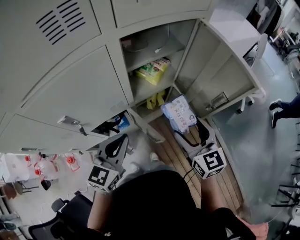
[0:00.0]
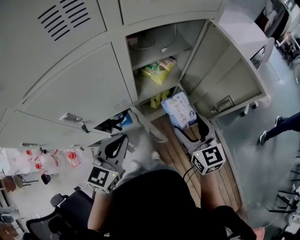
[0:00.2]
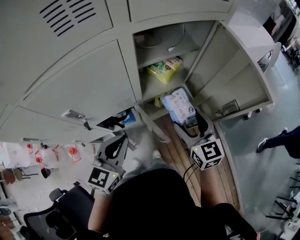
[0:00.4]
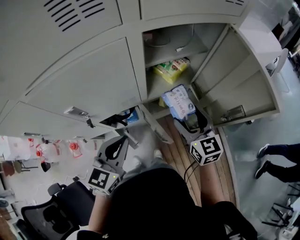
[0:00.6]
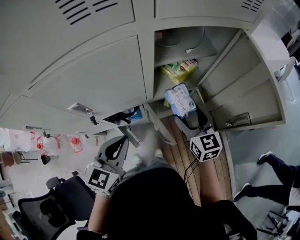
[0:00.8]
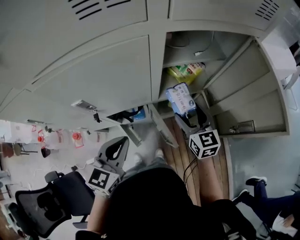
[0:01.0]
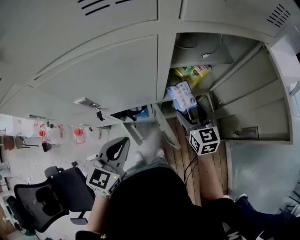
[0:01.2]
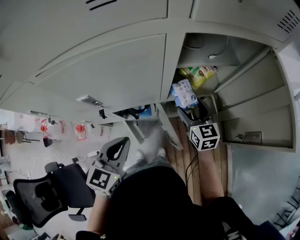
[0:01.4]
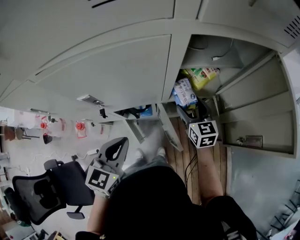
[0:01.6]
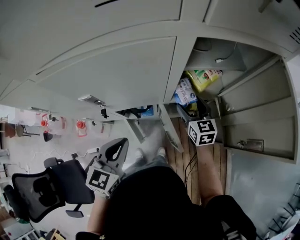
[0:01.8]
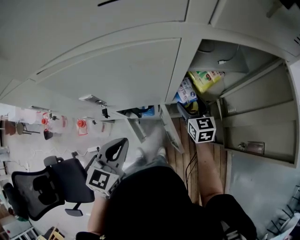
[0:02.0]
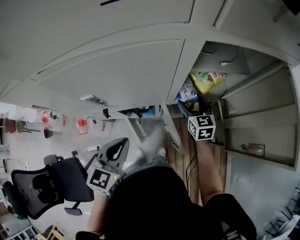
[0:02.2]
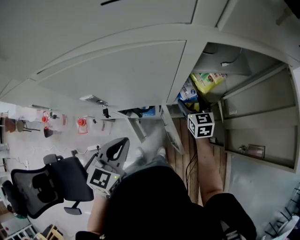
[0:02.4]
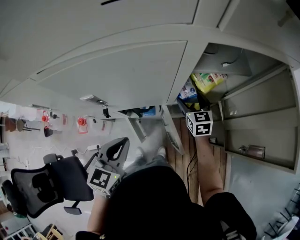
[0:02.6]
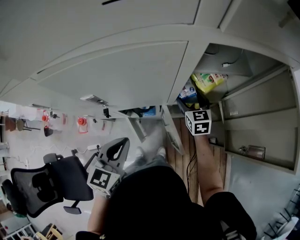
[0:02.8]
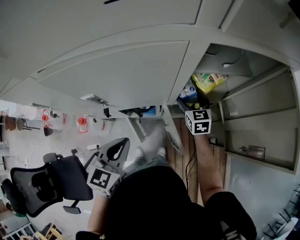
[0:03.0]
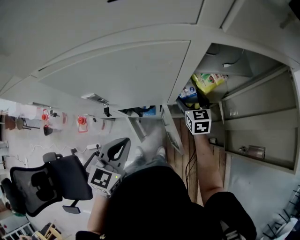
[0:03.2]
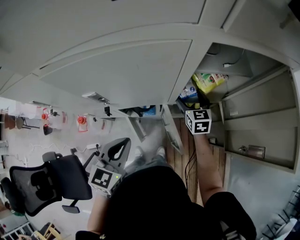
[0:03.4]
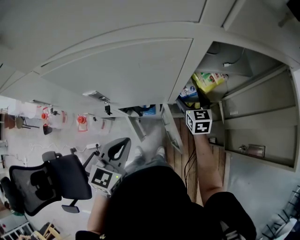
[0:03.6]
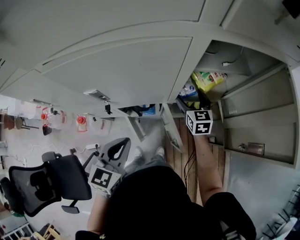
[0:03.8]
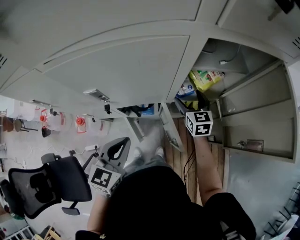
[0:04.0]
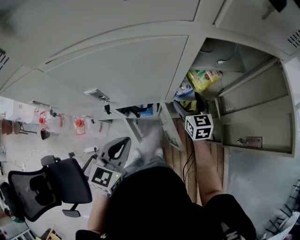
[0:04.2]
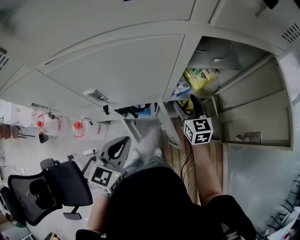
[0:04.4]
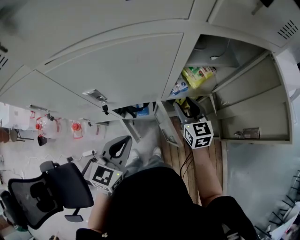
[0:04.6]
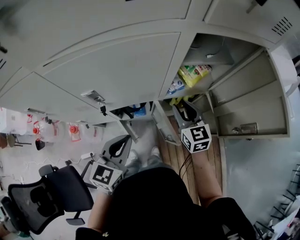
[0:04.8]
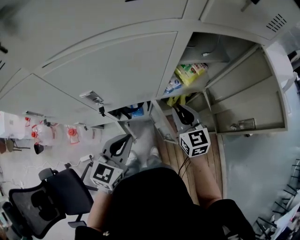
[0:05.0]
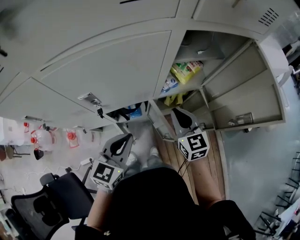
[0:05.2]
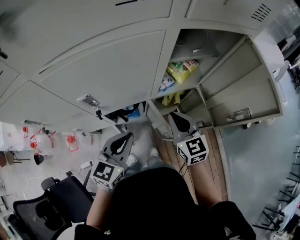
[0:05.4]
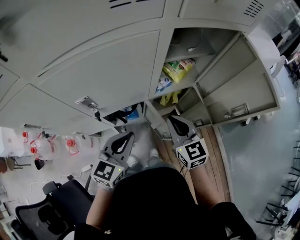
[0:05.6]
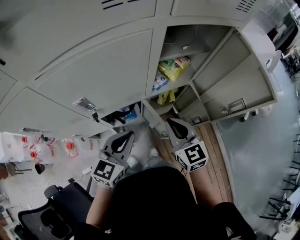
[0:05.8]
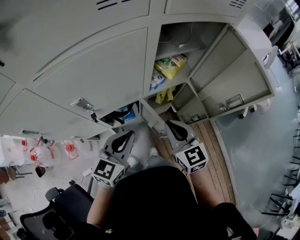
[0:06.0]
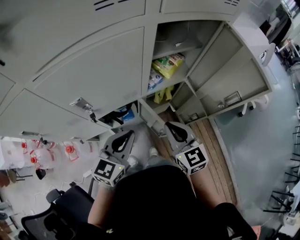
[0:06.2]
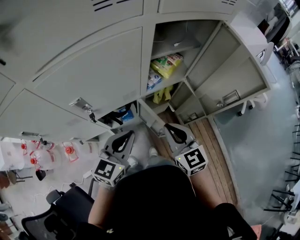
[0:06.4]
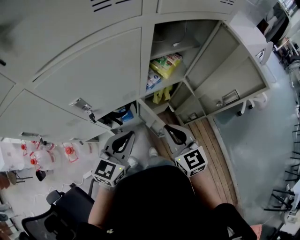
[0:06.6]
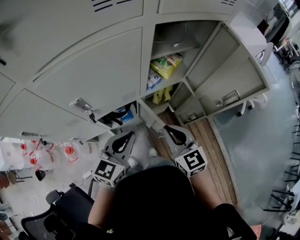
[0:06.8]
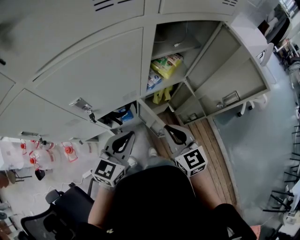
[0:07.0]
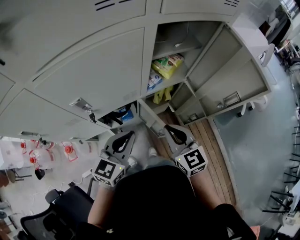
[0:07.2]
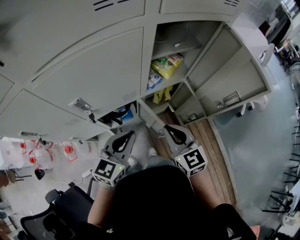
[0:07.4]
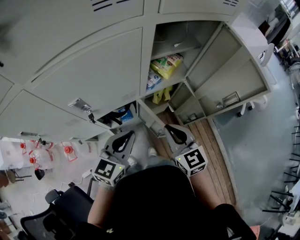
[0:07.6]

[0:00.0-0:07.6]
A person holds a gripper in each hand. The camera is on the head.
0:00.0 to 0:01.6: The left gripper is displaced to the left by approximately 10 cm, and swivels roughly 20 degrees, while the right gripper heads forward, downward and to the left, covering some 25 cm.
0:01.6 to 0:03.0: The right gripper is displaced forward by some 5 cm.
0:03.0 to 0:04.6: The right gripper is displaced backward and upward by about 10 cm, and closes.
0:04.6 to 0:06.0: The right gripper shifts approximately 15 cm backward and upward, and closes up.
0:06.0 to 0:07.6: The grippers stay close to where they were, moving slightly.

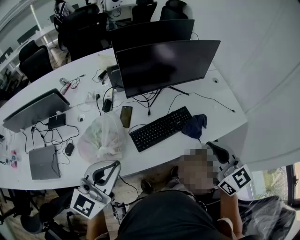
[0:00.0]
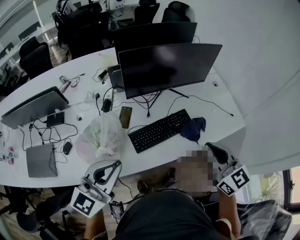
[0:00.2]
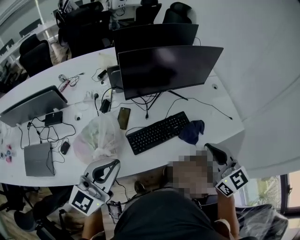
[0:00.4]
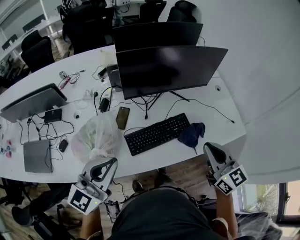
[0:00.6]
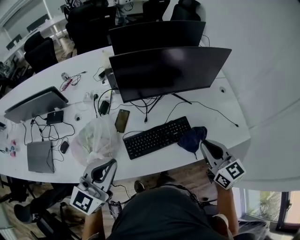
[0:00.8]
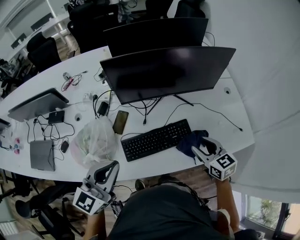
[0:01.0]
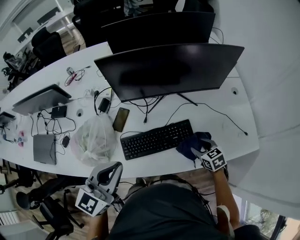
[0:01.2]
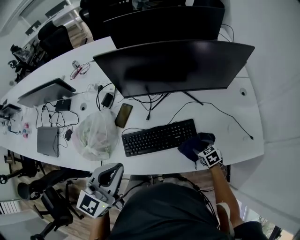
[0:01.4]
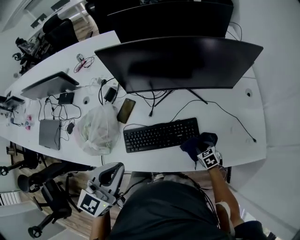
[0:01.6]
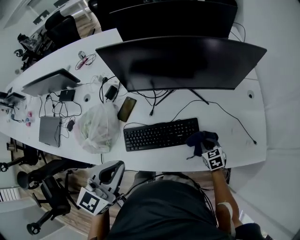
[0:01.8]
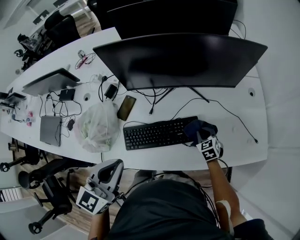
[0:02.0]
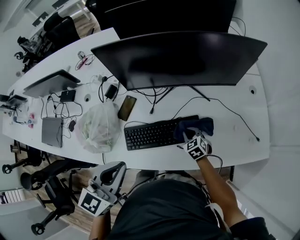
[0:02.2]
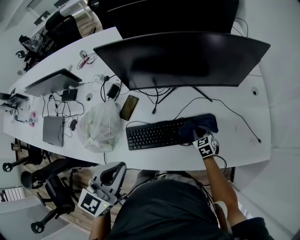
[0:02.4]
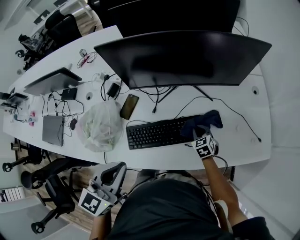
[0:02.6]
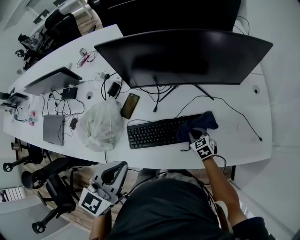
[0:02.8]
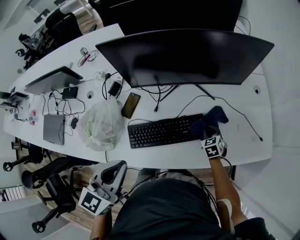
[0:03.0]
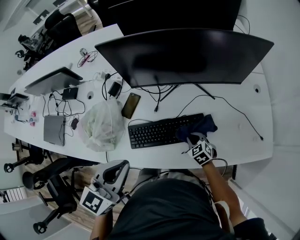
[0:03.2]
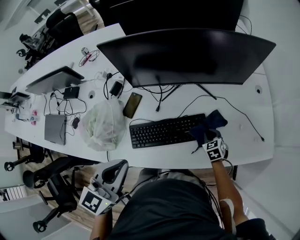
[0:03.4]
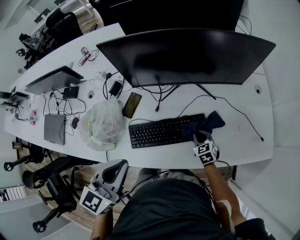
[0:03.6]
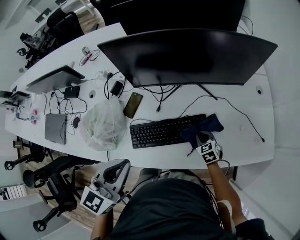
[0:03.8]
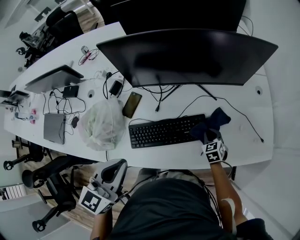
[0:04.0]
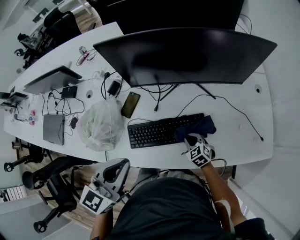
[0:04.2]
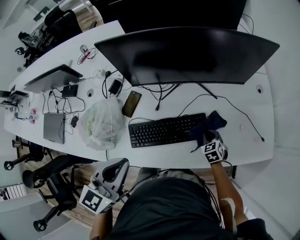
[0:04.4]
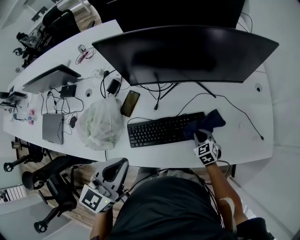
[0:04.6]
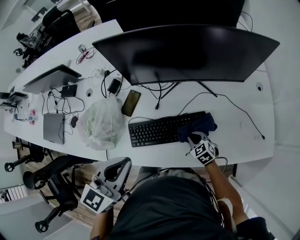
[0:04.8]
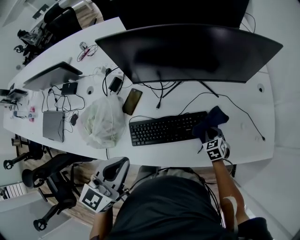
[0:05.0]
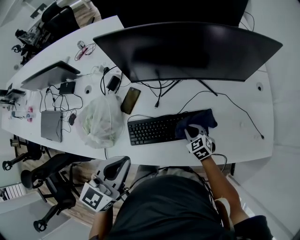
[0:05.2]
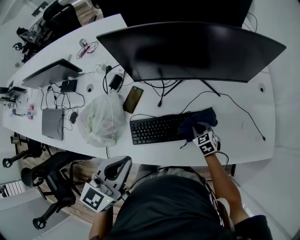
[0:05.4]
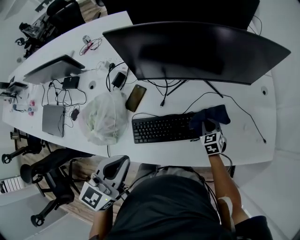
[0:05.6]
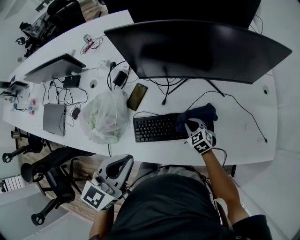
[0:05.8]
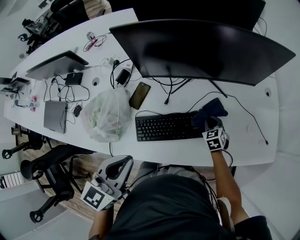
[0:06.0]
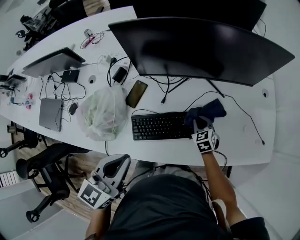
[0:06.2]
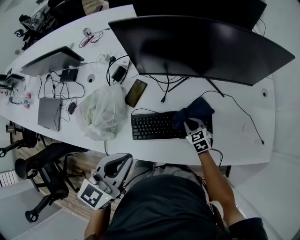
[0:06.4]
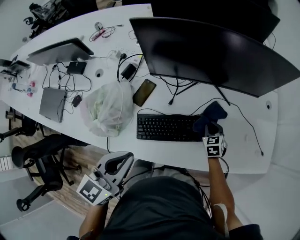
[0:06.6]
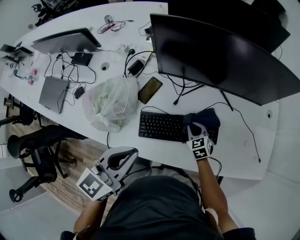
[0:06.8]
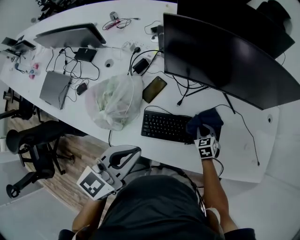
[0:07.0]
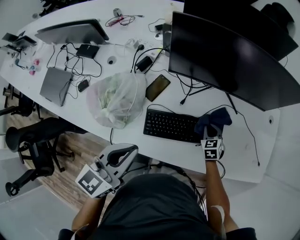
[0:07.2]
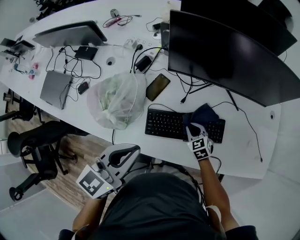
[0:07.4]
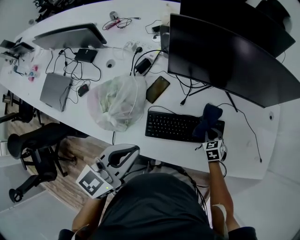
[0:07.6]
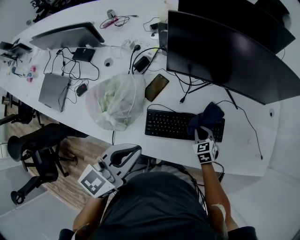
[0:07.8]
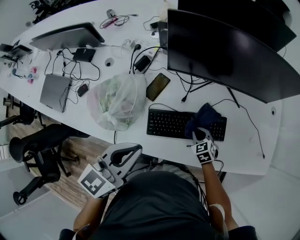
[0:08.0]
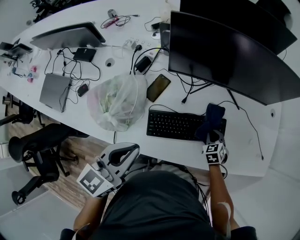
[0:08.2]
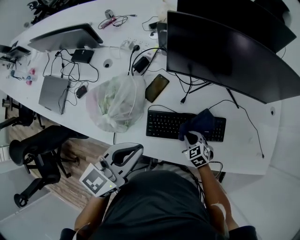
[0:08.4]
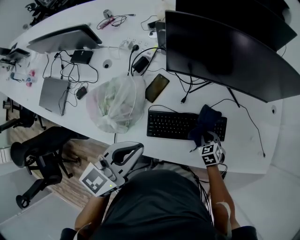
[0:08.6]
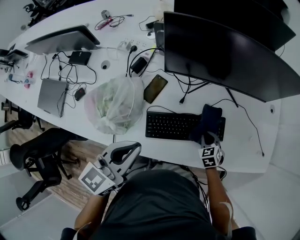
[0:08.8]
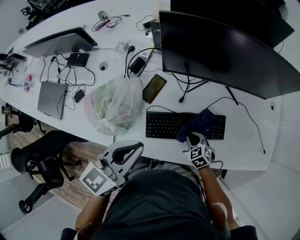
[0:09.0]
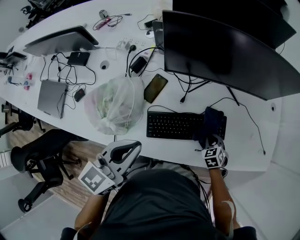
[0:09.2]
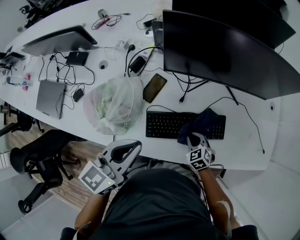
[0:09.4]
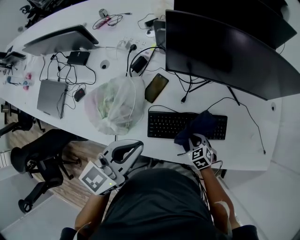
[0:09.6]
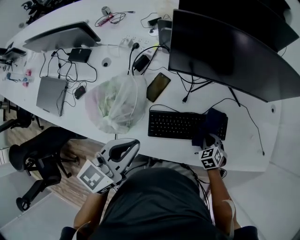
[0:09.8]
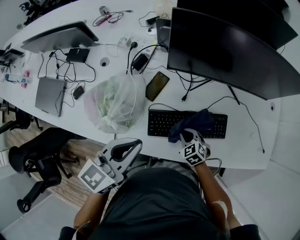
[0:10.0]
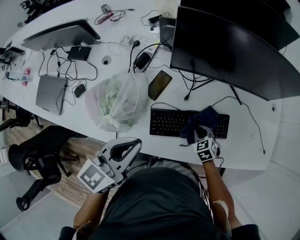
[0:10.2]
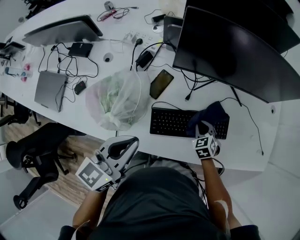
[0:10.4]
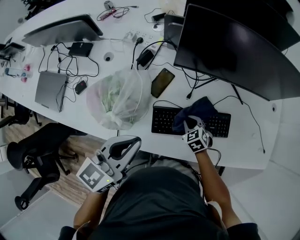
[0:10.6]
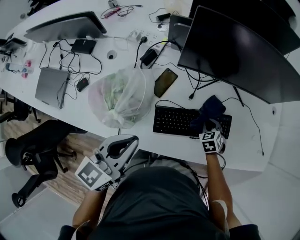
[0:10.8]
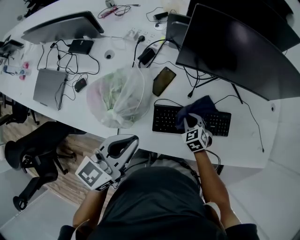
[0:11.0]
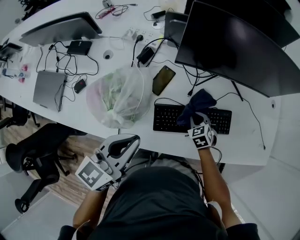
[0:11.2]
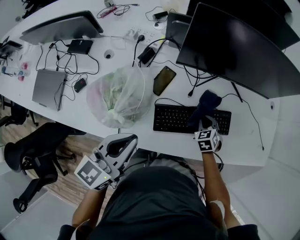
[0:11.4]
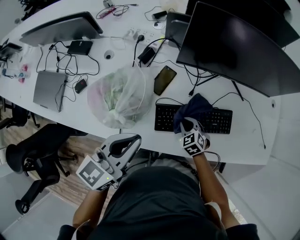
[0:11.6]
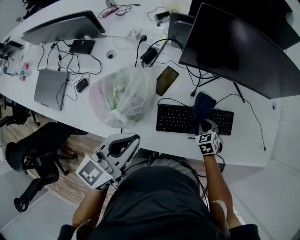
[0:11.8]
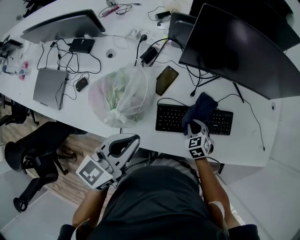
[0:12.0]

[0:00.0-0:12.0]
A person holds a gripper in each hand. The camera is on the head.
0:00.0 to 0:01.6: The left gripper is displaced to the right and forward by approximately 20 cm, and swivels some 30 degrees. The right gripper goes about 50 cm downward, forward and to the right, tilts its fingers about 50 degrees downward, and opens.
0:01.6 to 0:03.0: The right gripper heads forward, covering roughly 10 cm, reaches about 10 cm to the left, then returns, and closes up.
0:03.0 to 0:04.4: The right gripper swings left and right, some 10 cm each way, with 5 reversals.
0:04.4 to 0:06.0: The right gripper moves left and right over about 15 cm, changing direction 5 times.
0:06.0 to 0:07.6: The left gripper moves to the left, about 5 cm. The right gripper goes left and right, some 15 cm each way, reversing 5 times.
0:07.6 to 0:09.0: The right gripper swings left and right, approximately 10 cm each way, with 4 reversals.
0:09.0 to 0:10.4: The left gripper is displaced to the left by about 5 cm. The right gripper swings left and right, approximately 15 cm each way, with 4 reversals.
0:10.4 to 0:12.0: The right gripper swings left and right, some 10 cm each way, with 6 reversals.

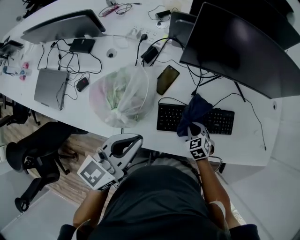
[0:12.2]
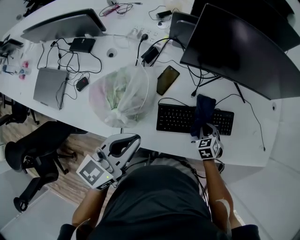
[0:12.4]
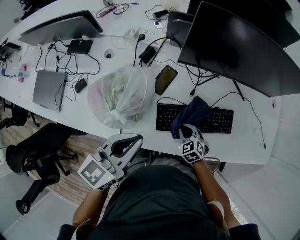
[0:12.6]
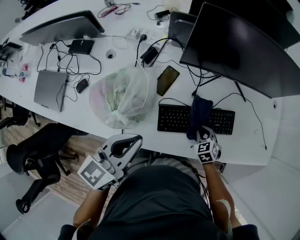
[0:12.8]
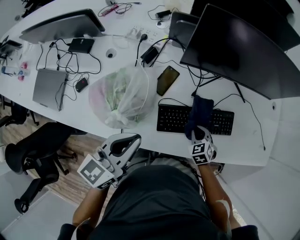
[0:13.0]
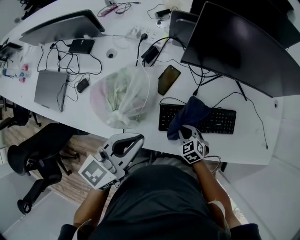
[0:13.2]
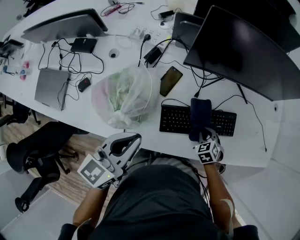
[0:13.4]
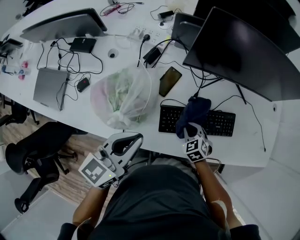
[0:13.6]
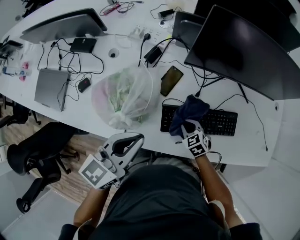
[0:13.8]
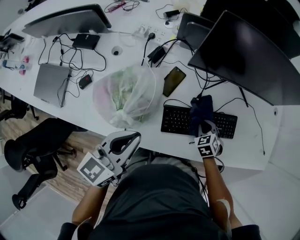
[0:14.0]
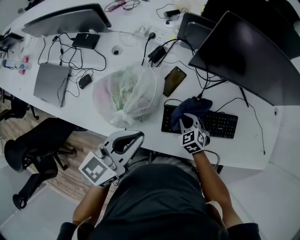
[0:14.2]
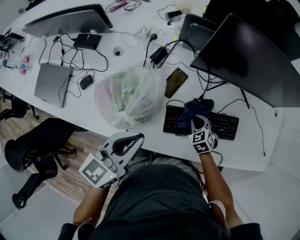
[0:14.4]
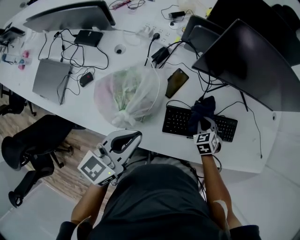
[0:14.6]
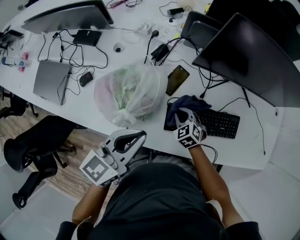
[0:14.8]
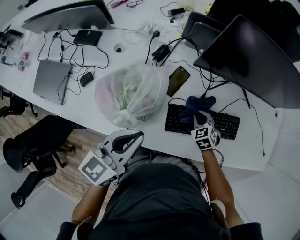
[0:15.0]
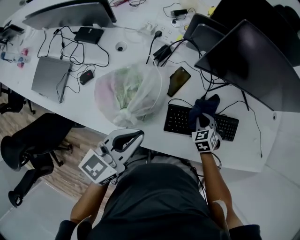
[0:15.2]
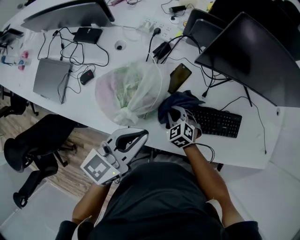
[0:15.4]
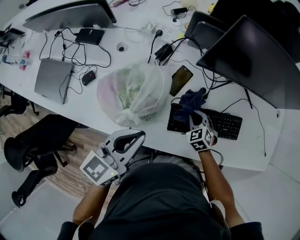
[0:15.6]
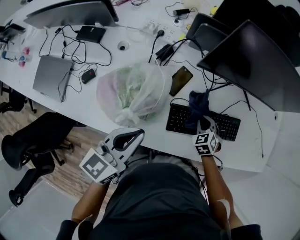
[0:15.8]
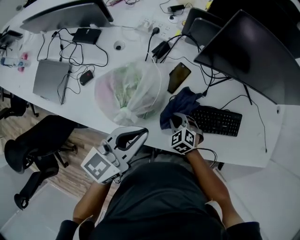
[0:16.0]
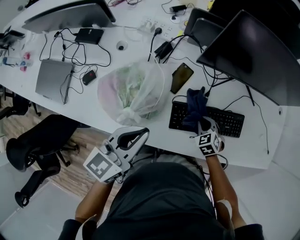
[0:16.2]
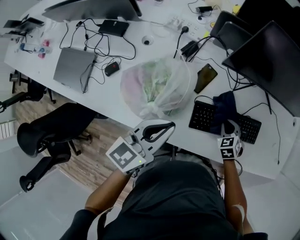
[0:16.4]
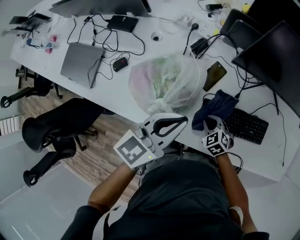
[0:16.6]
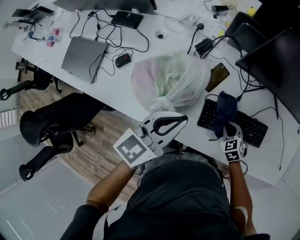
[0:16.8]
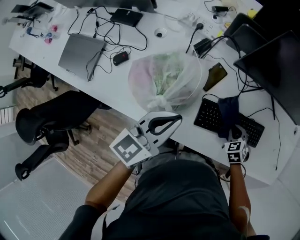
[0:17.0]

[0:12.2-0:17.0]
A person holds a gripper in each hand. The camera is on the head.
0:12.2 to 0:13.8: The right gripper goes left and right, about 10 cm each way, reversing 5 times.
0:13.8 to 0:15.4: The right gripper swings left and right, about 20 cm each way, with 5 reversals.
0:15.4 to 0:17.0: The right gripper goes left and right, roughly 20 cm each way, reversing 4 times.
